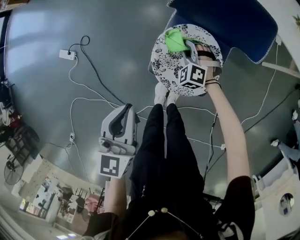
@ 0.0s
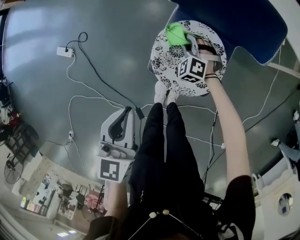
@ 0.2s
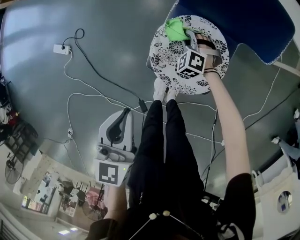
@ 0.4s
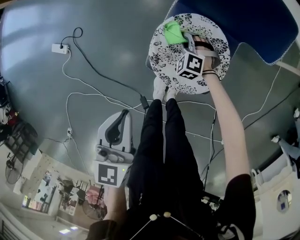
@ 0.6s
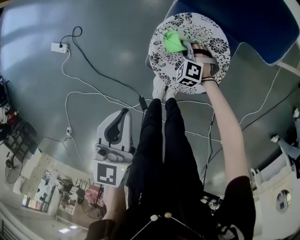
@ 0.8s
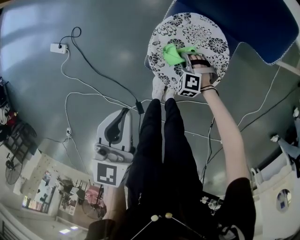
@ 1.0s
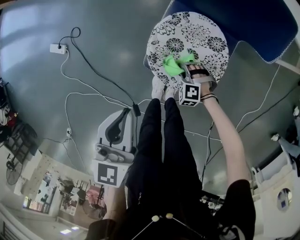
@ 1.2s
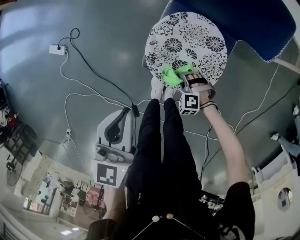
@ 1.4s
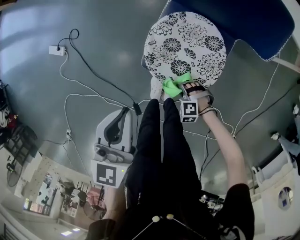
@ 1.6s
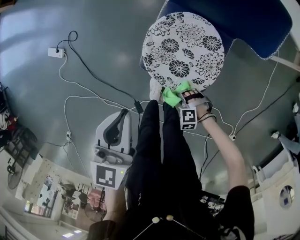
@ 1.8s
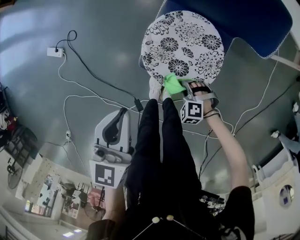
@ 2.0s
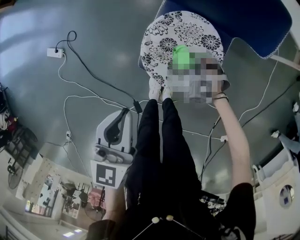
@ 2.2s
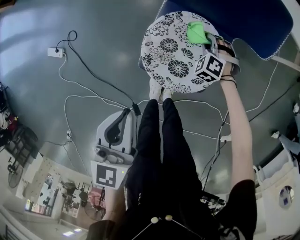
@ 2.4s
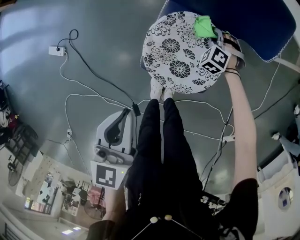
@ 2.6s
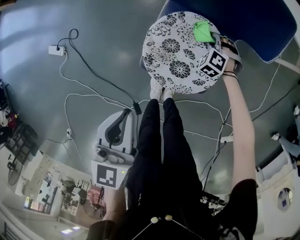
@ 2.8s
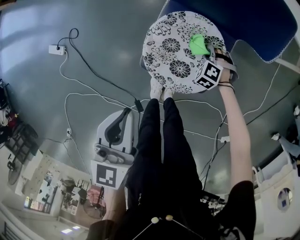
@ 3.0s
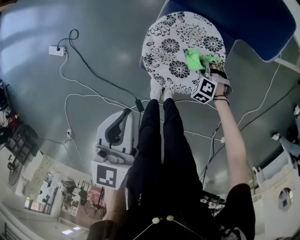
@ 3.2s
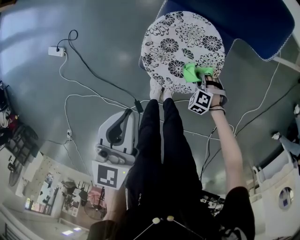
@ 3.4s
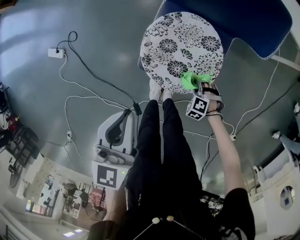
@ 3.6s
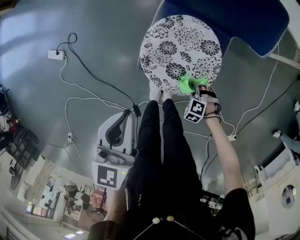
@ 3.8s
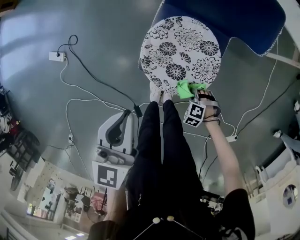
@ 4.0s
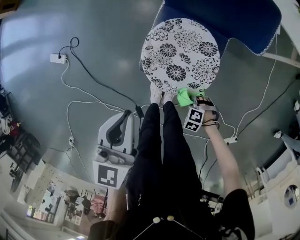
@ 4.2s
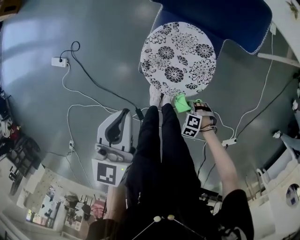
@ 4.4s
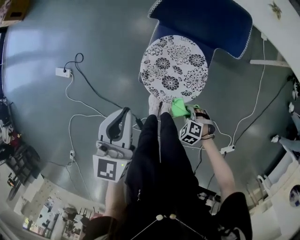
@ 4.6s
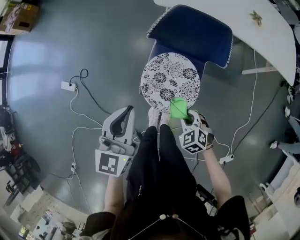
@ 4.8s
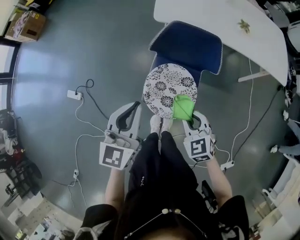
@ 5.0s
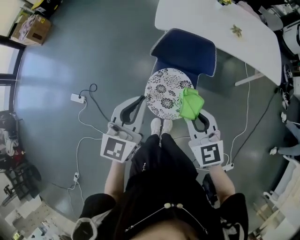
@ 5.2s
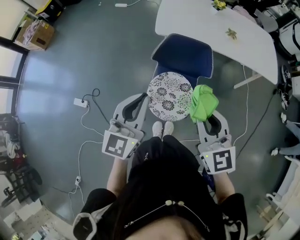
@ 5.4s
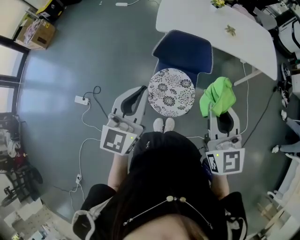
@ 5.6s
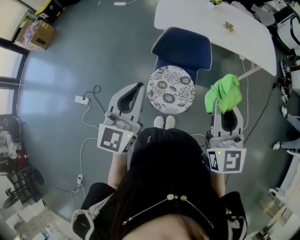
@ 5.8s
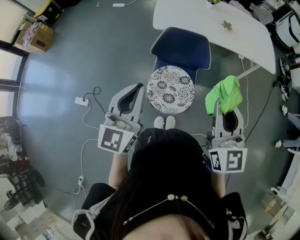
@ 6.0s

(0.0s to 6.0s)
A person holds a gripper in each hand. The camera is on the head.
0.0s - 1.6s: The right gripper changes place by approximately 30 cm, and changes its angle by roughly 40 degrees.
1.6s - 3.0s: The right gripper moves approximately 25 cm, and swivels roughly 30 degrees.
3.0s - 4.4s: The right gripper moves roughly 30 cm, and changes its angle by some 20 degrees.
4.4s - 6.0s: The right gripper goes approximately 70 cm upward, and points its fingers about 80 degrees further upward; the left gripper moves upward, about 30 cm, and swivels about 30 degrees.

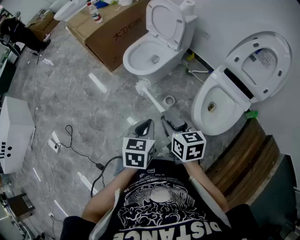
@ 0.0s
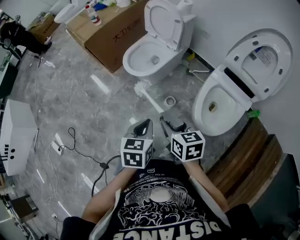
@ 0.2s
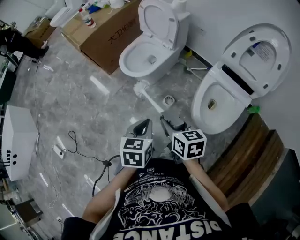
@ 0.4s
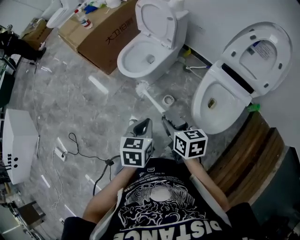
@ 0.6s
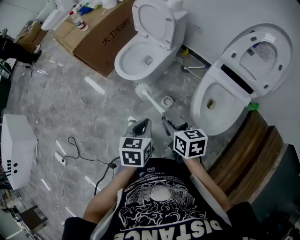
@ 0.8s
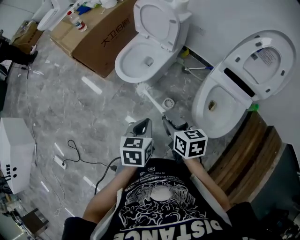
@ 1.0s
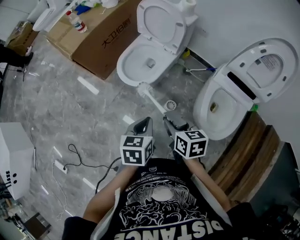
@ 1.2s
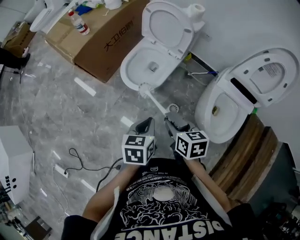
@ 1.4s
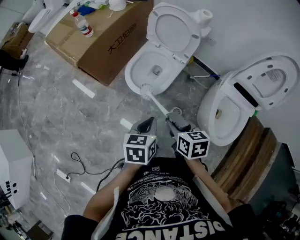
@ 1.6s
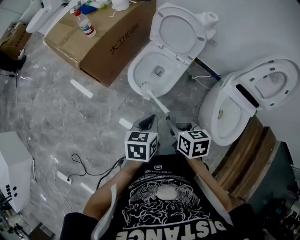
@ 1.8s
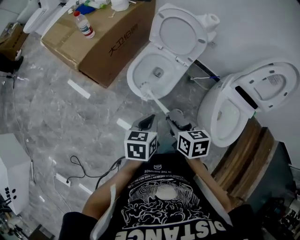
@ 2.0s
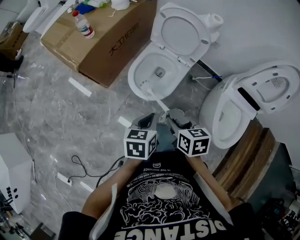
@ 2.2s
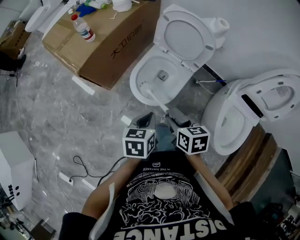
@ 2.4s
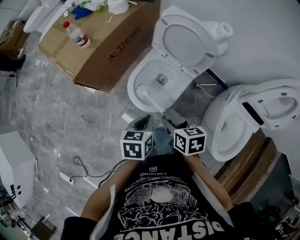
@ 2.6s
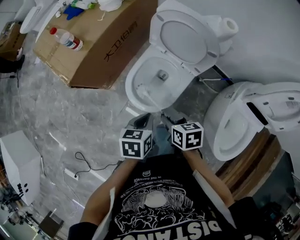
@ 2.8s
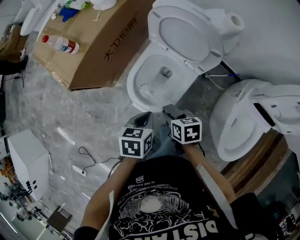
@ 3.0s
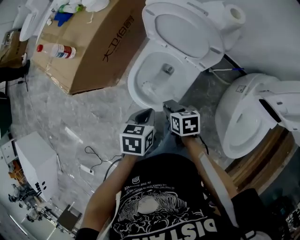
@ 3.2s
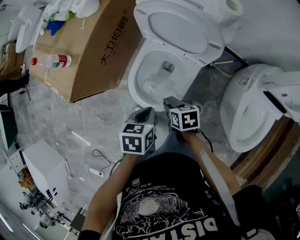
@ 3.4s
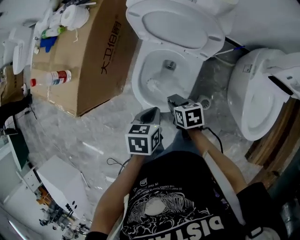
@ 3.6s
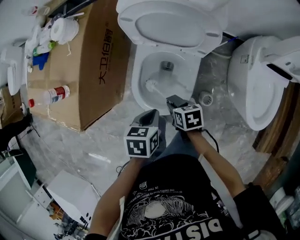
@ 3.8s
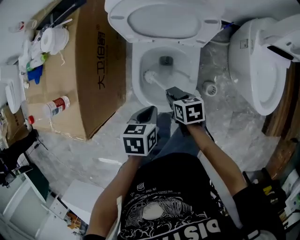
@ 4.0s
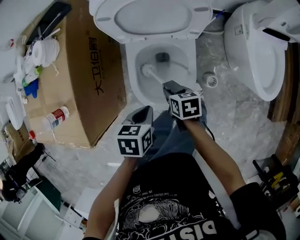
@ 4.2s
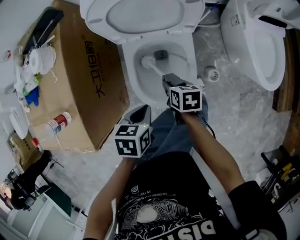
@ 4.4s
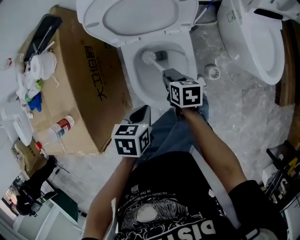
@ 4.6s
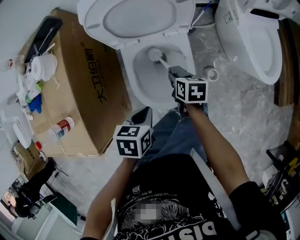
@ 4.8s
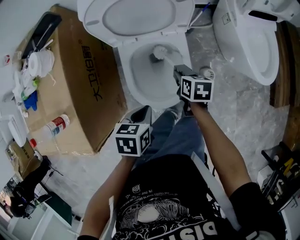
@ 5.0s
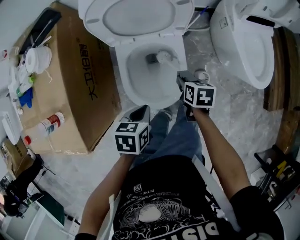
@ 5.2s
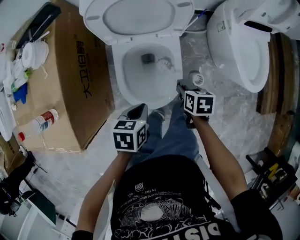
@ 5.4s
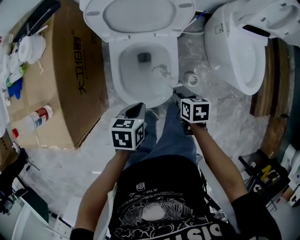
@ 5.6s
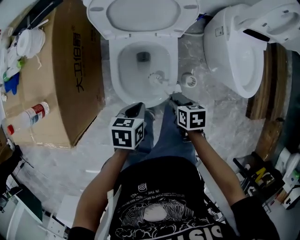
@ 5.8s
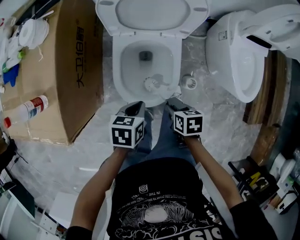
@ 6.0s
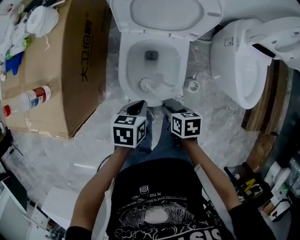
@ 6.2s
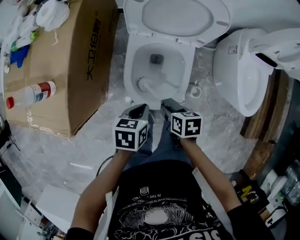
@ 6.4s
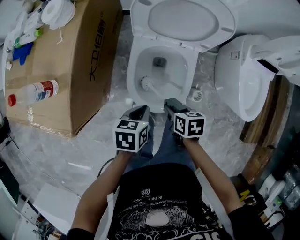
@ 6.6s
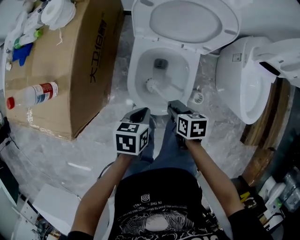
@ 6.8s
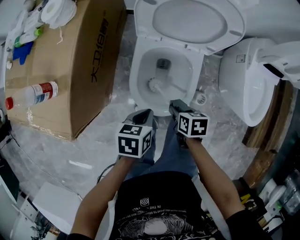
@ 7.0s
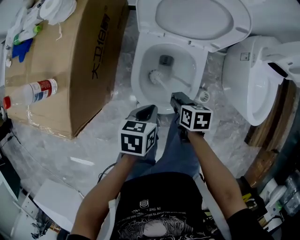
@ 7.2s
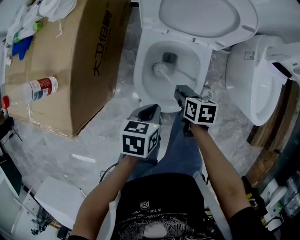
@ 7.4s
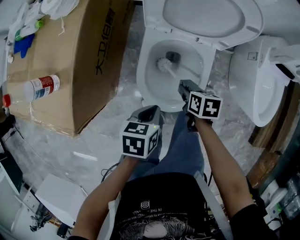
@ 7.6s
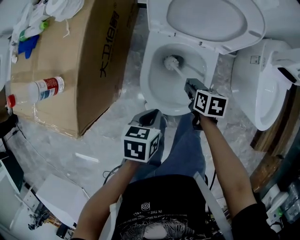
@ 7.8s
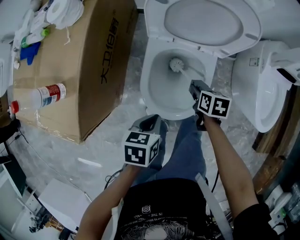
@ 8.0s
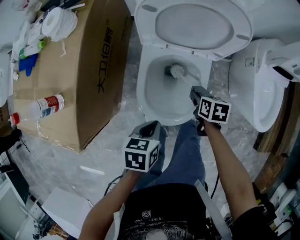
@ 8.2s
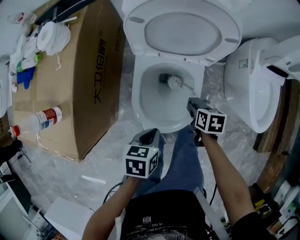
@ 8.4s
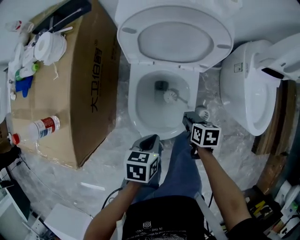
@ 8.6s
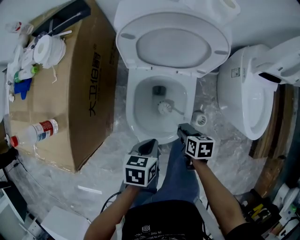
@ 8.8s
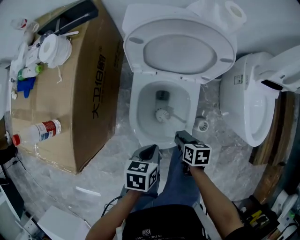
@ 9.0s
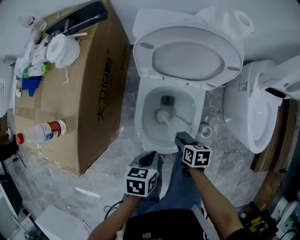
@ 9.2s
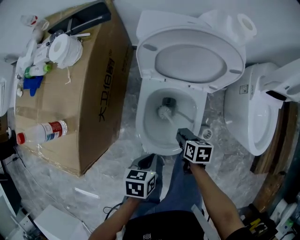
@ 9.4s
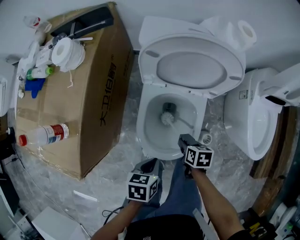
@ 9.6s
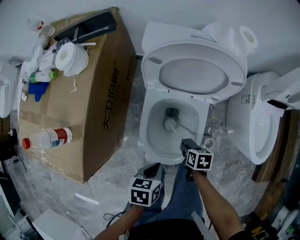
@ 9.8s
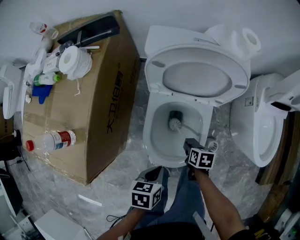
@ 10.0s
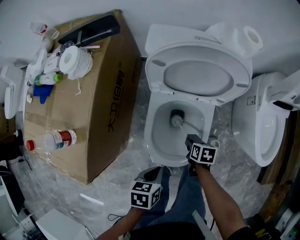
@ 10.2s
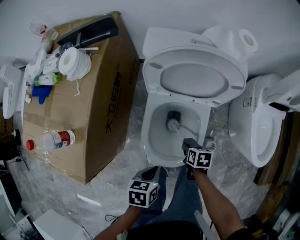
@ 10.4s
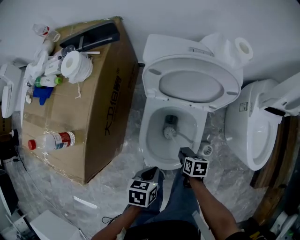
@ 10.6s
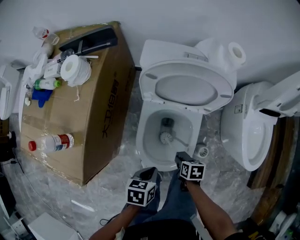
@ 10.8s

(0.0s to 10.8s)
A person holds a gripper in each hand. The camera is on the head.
0.0s - 1.6s: Both grippers travel together forward and to the left, some 25 cm.
1.6s - 3.0s: Both grippers move forward and downward, roughly 25 cm.
3.0s - 4.6s: The right gripper moves some 15 cm, and turns by about 50 degrees, while the left gripper shifts by about 15 cm, and rotates about 40 degrees.
4.6s - 6.2s: The right gripper goes roughly 10 cm backward.
6.2s - 7.8s: The right gripper heads forward, covering some 15 cm.
7.8s - 9.2s: The right gripper travels backward by roughly 5 cm.

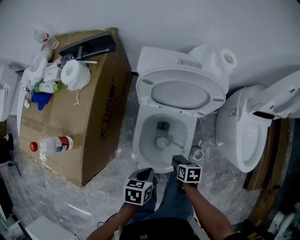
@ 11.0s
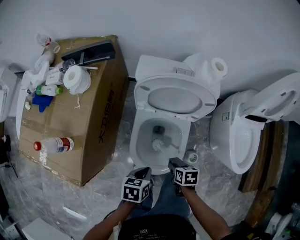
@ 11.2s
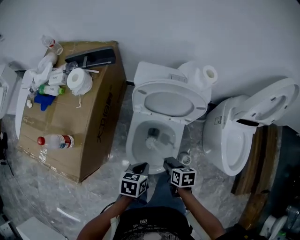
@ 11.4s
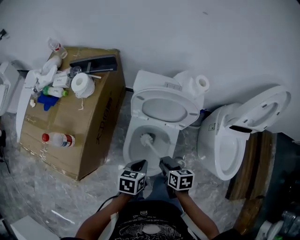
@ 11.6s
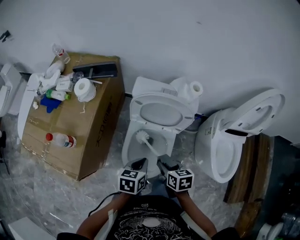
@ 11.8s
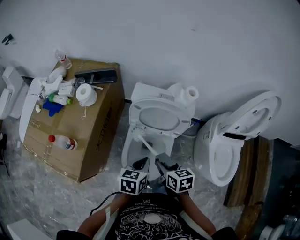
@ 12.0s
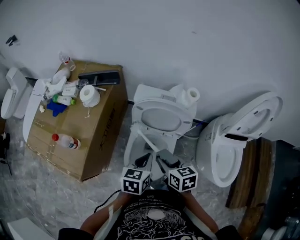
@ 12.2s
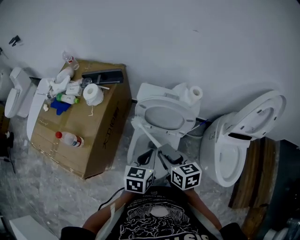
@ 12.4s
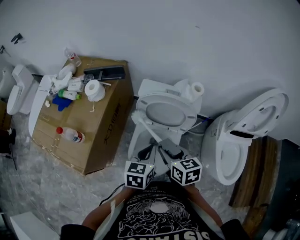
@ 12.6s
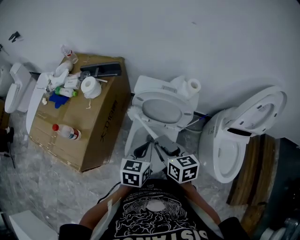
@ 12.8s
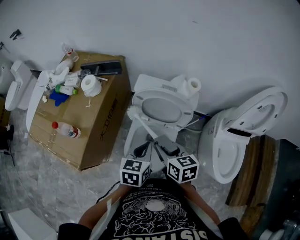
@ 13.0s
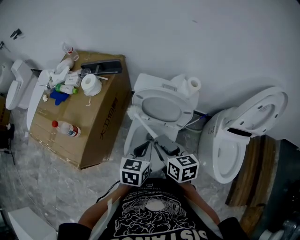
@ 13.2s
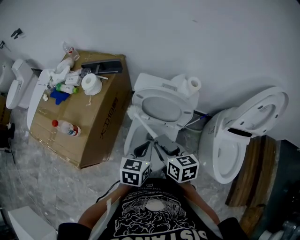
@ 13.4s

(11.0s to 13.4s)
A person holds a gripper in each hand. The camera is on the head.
11.0s - 12.2s: The left gripper goes about 20 cm upward and forward, and swivels roughly 30 degrees, while the right gripper is displaced upward by some 30 cm, and turns by some 40 degrees.
12.2s - 13.4s: There are only small adjustments of the grippers.

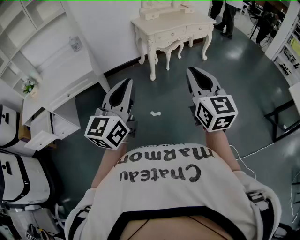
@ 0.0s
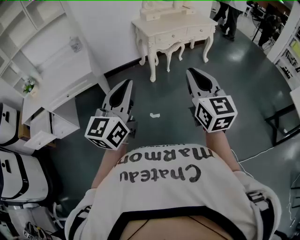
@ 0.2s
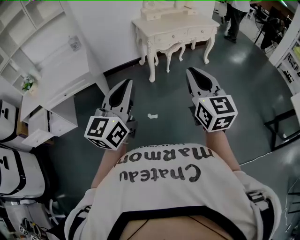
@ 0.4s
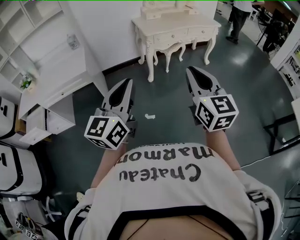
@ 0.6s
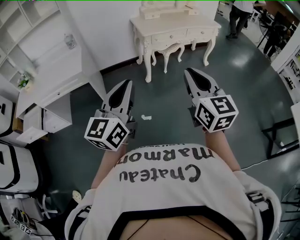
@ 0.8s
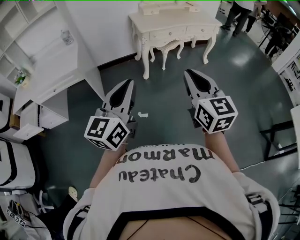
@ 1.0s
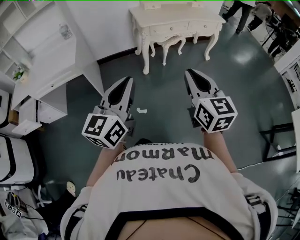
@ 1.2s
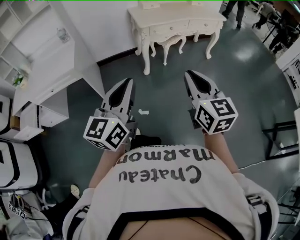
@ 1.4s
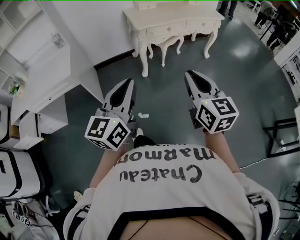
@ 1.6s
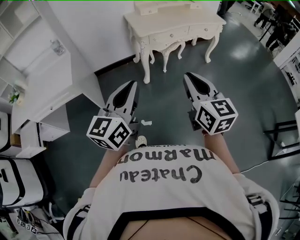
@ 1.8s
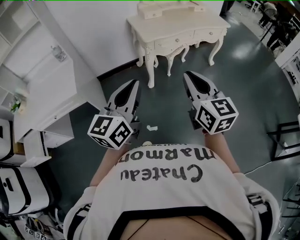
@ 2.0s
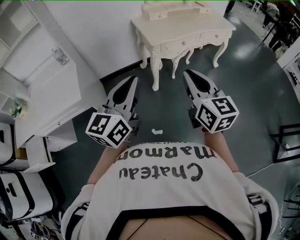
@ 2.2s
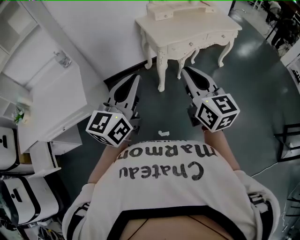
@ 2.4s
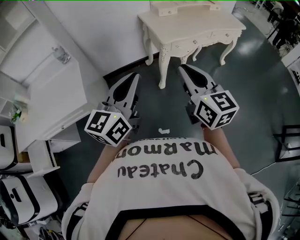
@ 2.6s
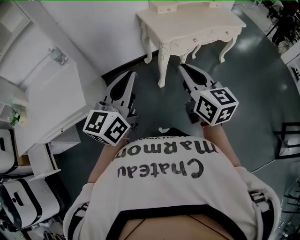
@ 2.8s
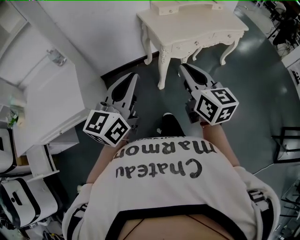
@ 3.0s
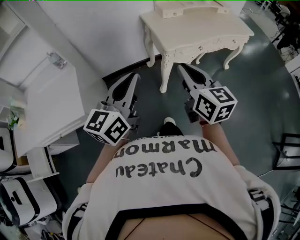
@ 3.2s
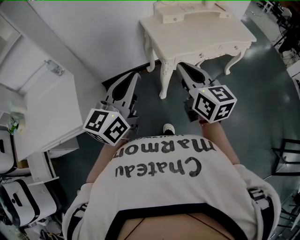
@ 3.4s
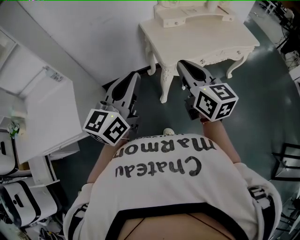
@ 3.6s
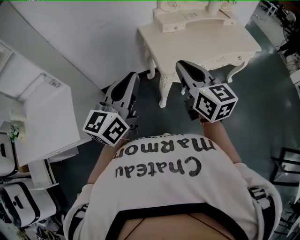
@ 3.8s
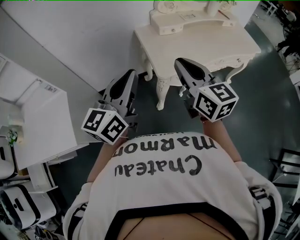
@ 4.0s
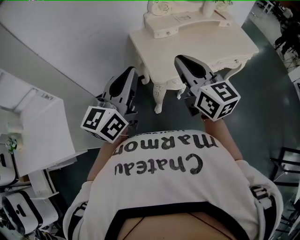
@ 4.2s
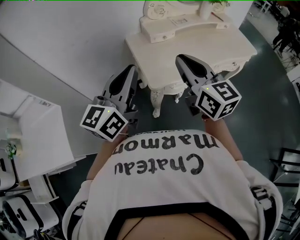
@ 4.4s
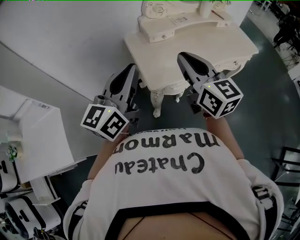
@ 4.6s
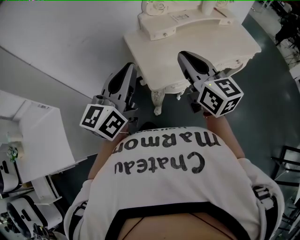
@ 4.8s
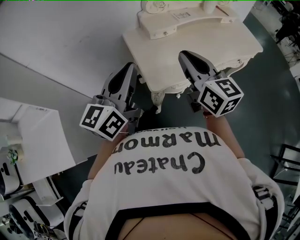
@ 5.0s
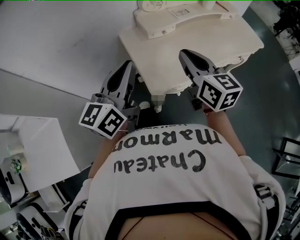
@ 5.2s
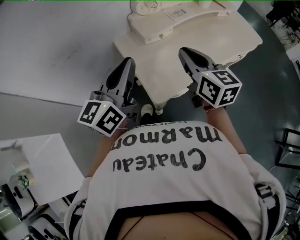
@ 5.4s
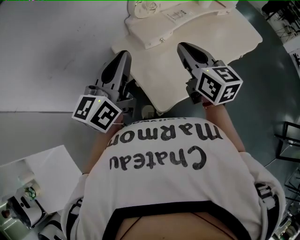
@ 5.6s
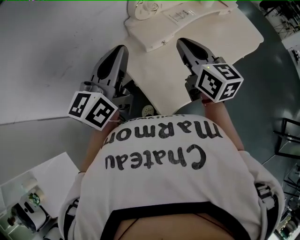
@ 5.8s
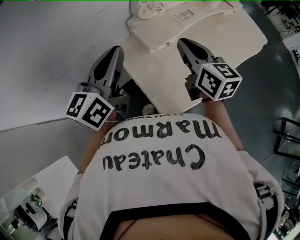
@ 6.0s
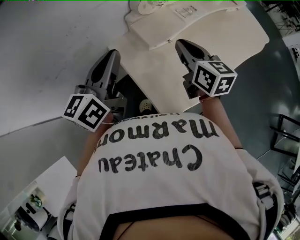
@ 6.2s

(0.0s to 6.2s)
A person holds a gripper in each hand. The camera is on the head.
0.0s - 1.6s: The right gripper is displaced forward, to the right and downward by about 25 cm. The left gripper is displaced forward and to the right by roughly 25 cm.
1.6s - 3.2s: The two grippers go some 40 cm forward and to the left.
3.2s - 4.6s: The two grippers go some 25 cm forward.
4.6s - 6.2s: The right gripper is displaced forward and downward by some 30 cm, and swivels about 30 degrees. The left gripper travels forward by roughly 30 cm.
